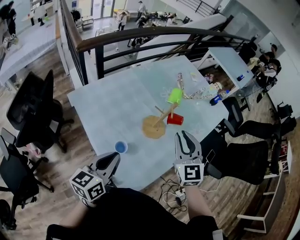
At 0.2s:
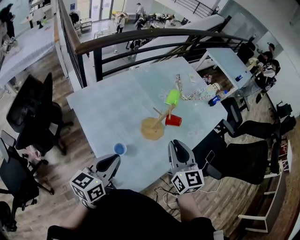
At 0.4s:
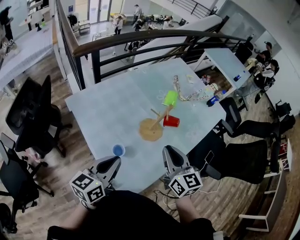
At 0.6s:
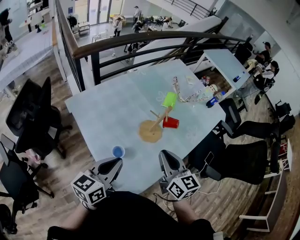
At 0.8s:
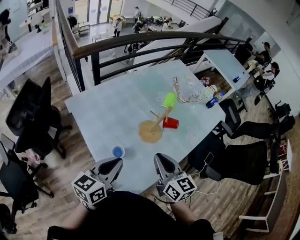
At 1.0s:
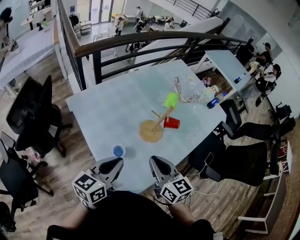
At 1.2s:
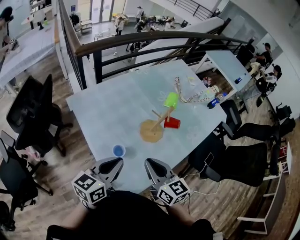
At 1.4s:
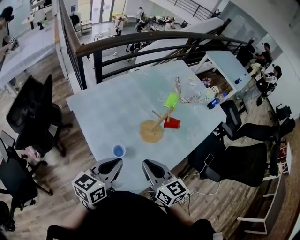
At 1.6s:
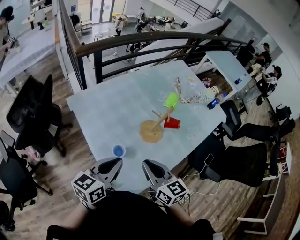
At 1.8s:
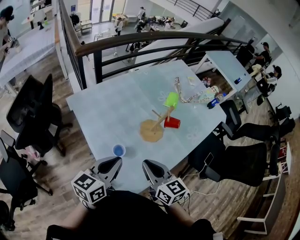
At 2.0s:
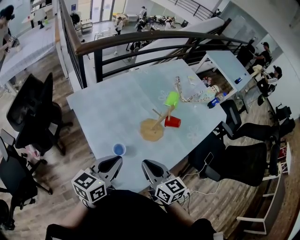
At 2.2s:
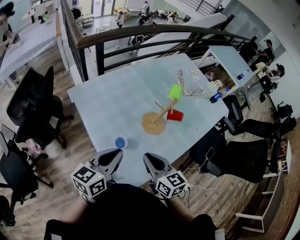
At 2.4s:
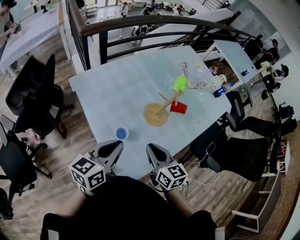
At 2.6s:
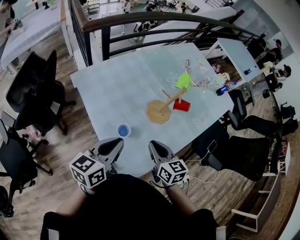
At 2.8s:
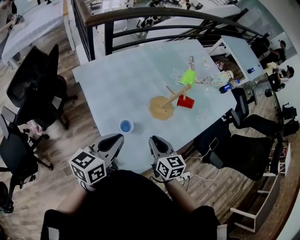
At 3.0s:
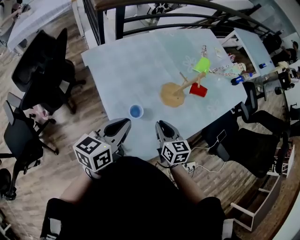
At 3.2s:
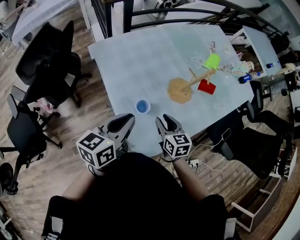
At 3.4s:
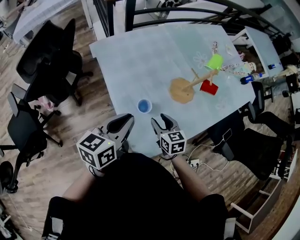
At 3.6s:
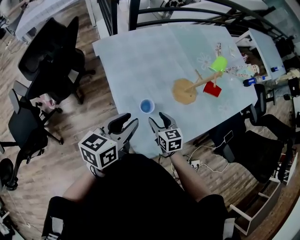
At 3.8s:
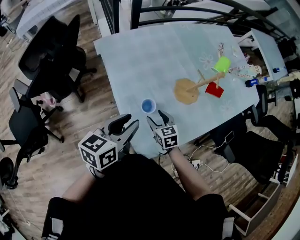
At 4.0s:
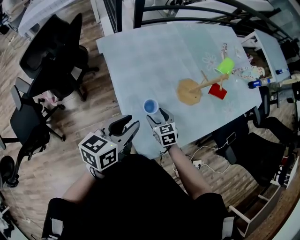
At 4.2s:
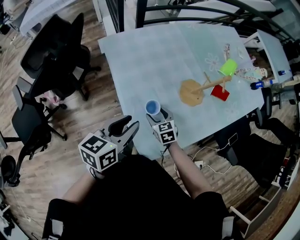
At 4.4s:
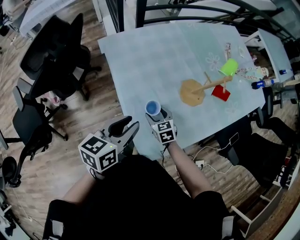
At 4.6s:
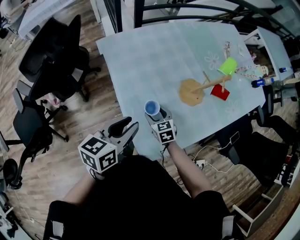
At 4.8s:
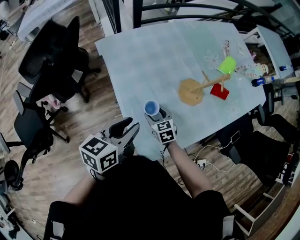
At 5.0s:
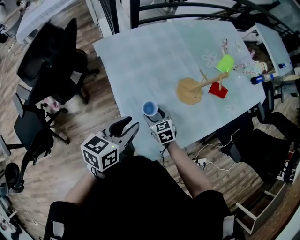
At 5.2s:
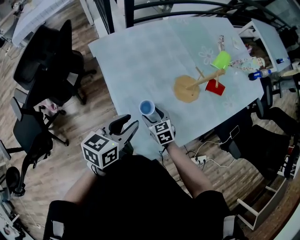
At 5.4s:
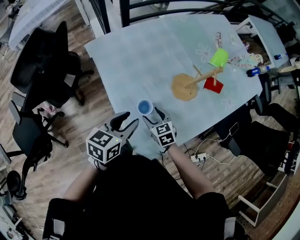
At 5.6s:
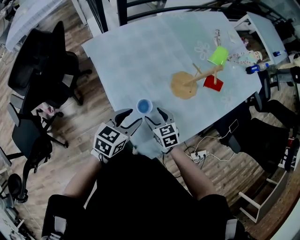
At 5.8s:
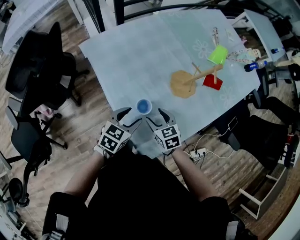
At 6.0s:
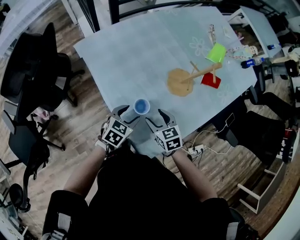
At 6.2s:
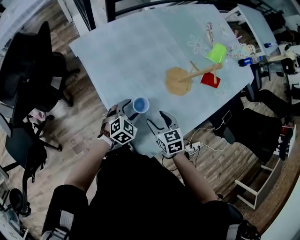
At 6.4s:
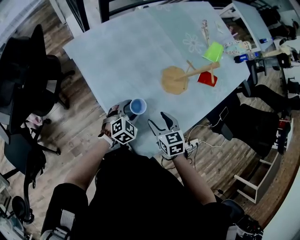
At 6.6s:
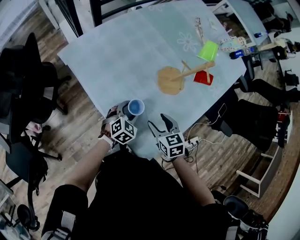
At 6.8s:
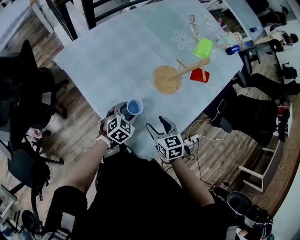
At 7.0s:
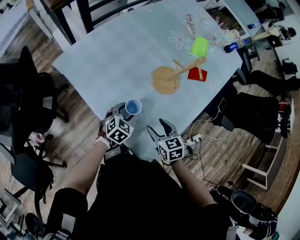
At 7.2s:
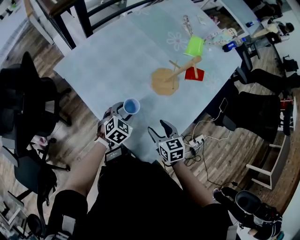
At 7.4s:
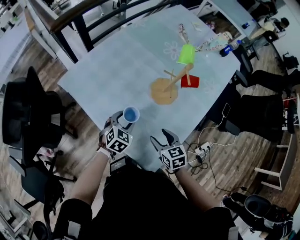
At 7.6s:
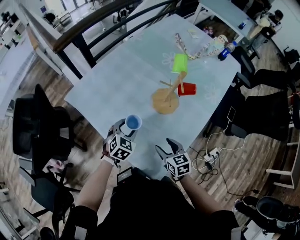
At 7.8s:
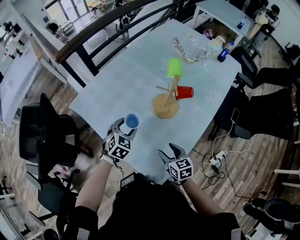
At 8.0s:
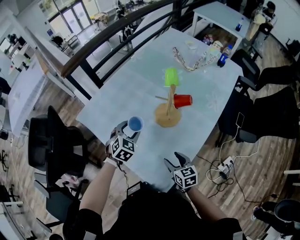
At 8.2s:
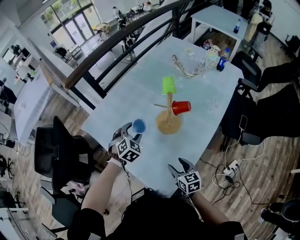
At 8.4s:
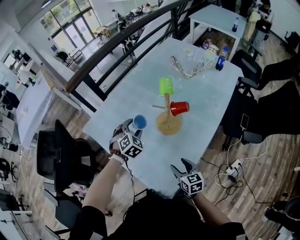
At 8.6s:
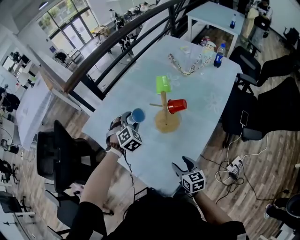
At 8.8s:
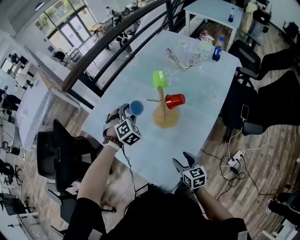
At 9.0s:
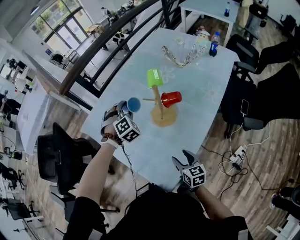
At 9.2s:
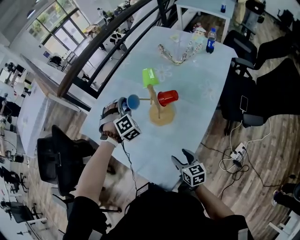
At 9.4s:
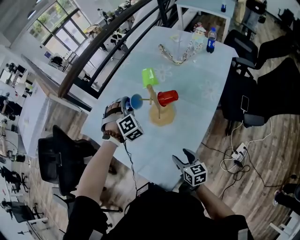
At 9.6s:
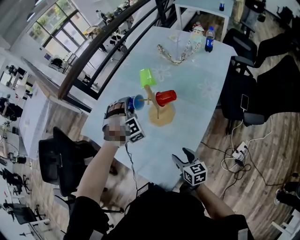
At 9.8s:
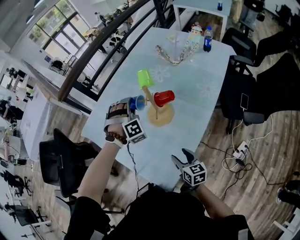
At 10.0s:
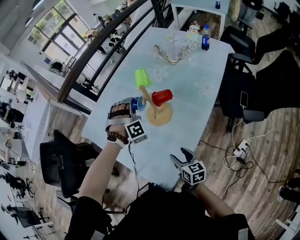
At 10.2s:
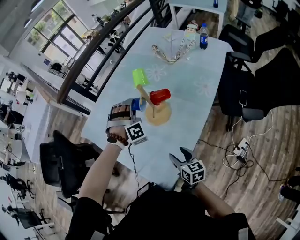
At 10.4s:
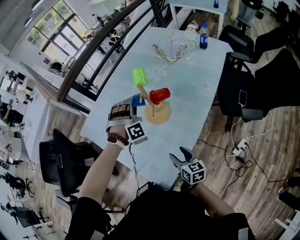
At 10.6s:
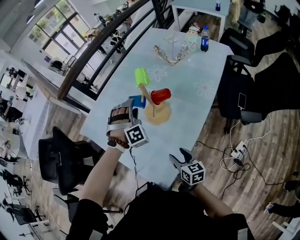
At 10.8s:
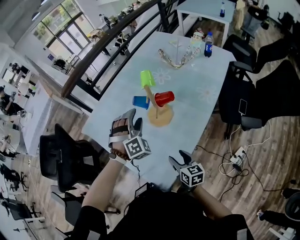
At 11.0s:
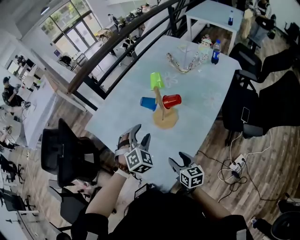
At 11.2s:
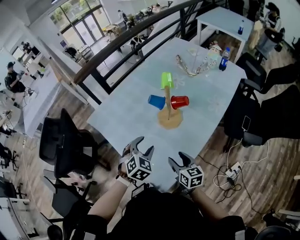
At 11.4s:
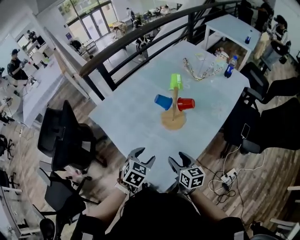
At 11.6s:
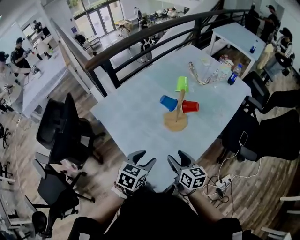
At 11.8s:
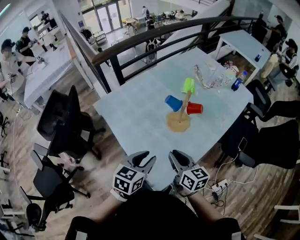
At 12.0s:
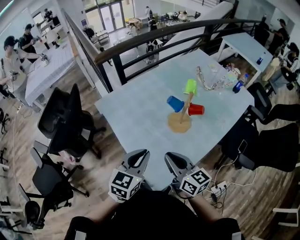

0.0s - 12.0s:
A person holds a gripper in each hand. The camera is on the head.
0.0s - 1.6s: The right gripper moves backward, to the left and downward, about 15 cm, and swivels about 40 degrees.
1.6s - 3.0s: The left gripper changes place by some 5 cm; the right gripper travels downward by about 15 cm.
3.0s - 4.4s: The left gripper ends up roughly 5 cm from where it was, and opens up. Meanwhile the right gripper heads downward and to the left, covering roughly 15 cm, changes its angle by approximately 30 degrees, and opens.
4.4s - 6.0s: The right gripper shifts some 5 cm to the right; the left gripper travels downward by roughly 20 cm, rotates approximately 40 degrees, and opens up.
6.0s - 7.6s: The left gripper is displaced forward by approximately 10 cm, and changes its angle by approximately 30 degrees, while the right gripper moves to the right, some 5 cm, and turns by some 20 degrees.
7.6s - 9.0s: The right gripper travels to the right by about 10 cm; the left gripper goes about 20 cm forward, upward and to the right, and changes its angle by about 50 degrees.
9.0s - 10.4s: The left gripper heads to the right, covering some 10 cm, and swivels roughly 30 degrees.
10.4s - 12.0s: The left gripper shifts approximately 30 cm backward and to the left, rolls counterclockwise, seen from behind, by some 90 degrees, and closes. The right gripper is displaced upward and to the left by some 25 cm, swivels about 30 degrees, and closes its fingers.

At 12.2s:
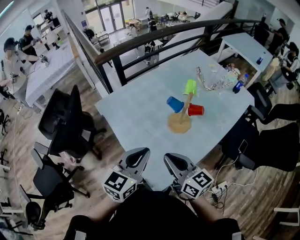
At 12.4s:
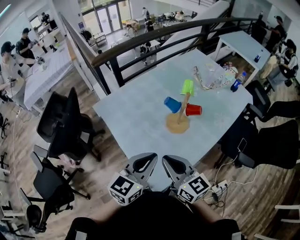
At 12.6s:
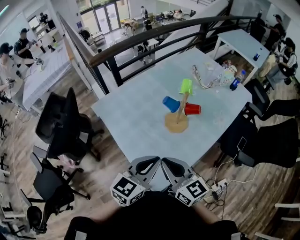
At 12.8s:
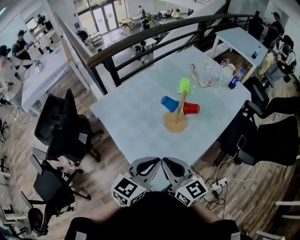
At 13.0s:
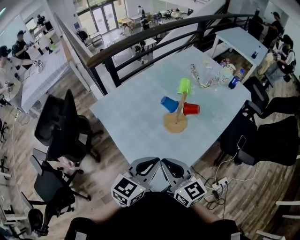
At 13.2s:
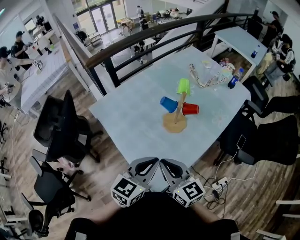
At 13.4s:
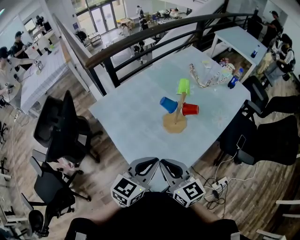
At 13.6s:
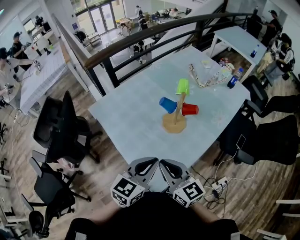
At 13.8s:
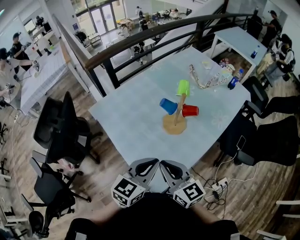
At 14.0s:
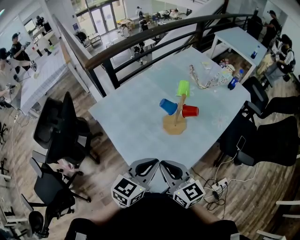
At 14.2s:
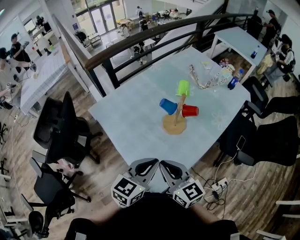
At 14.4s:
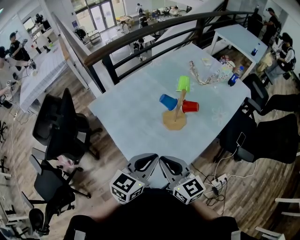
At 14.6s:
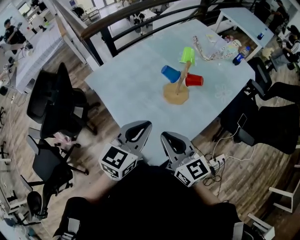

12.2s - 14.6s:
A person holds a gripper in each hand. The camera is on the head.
12.2s - 13.4s: The left gripper travels to the right by about 5 cm.
13.4s - 14.6s: The left gripper shifts roughly 5 cm forward.

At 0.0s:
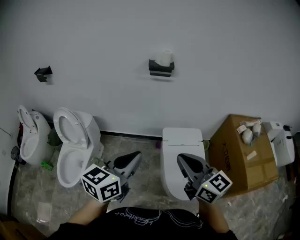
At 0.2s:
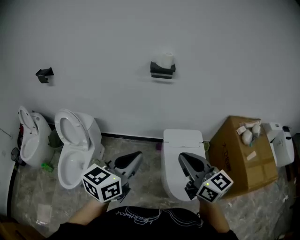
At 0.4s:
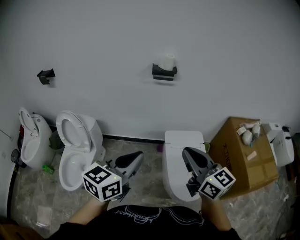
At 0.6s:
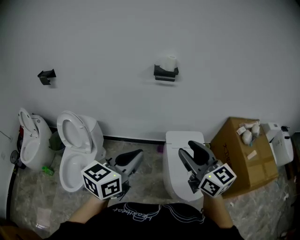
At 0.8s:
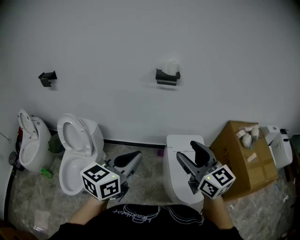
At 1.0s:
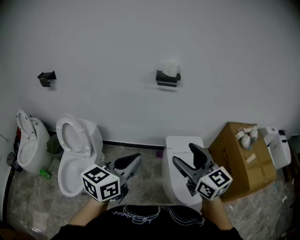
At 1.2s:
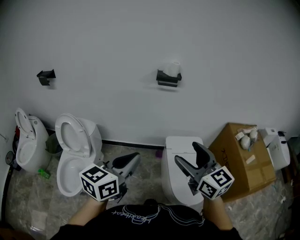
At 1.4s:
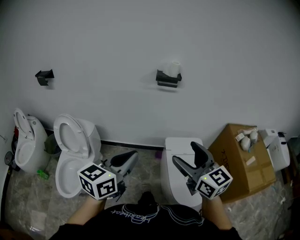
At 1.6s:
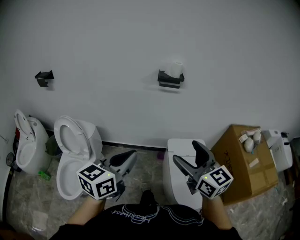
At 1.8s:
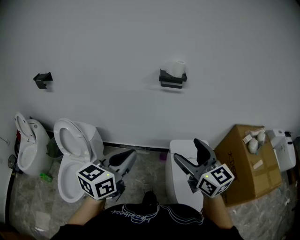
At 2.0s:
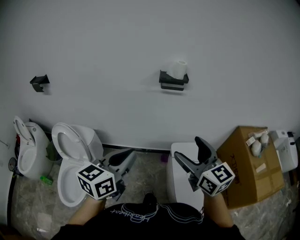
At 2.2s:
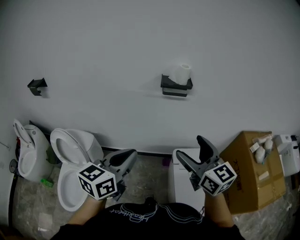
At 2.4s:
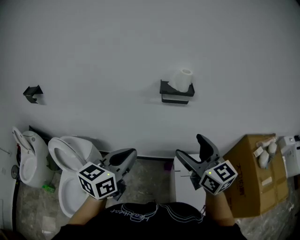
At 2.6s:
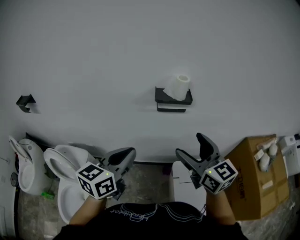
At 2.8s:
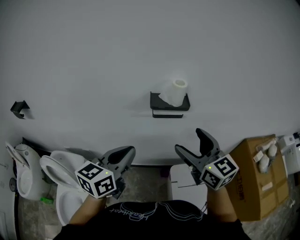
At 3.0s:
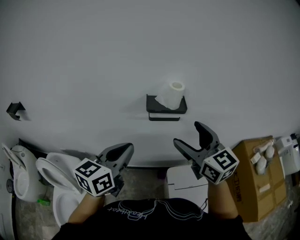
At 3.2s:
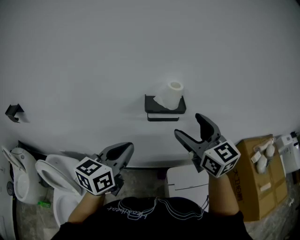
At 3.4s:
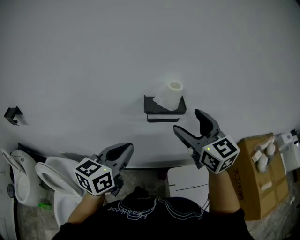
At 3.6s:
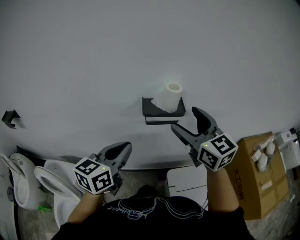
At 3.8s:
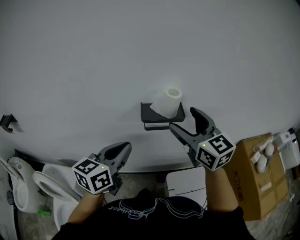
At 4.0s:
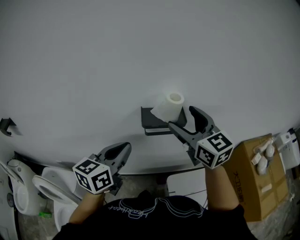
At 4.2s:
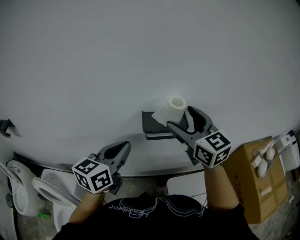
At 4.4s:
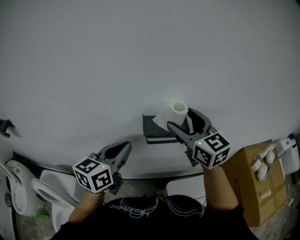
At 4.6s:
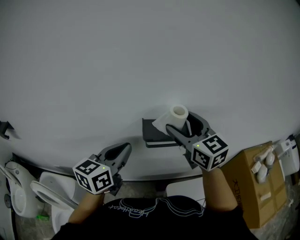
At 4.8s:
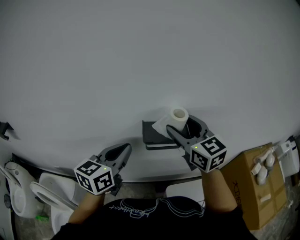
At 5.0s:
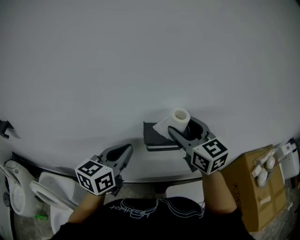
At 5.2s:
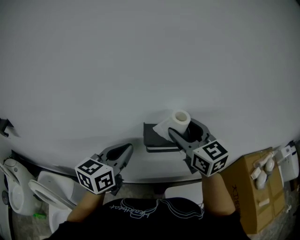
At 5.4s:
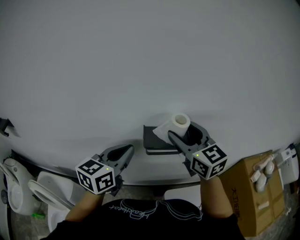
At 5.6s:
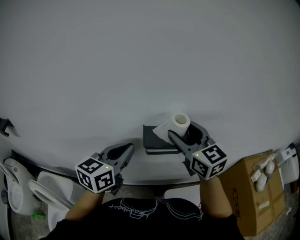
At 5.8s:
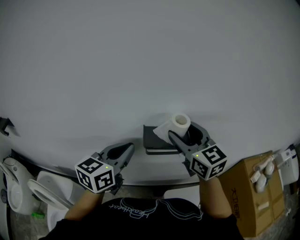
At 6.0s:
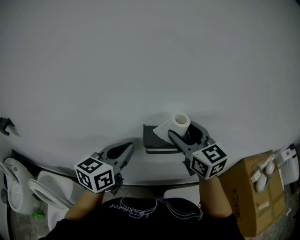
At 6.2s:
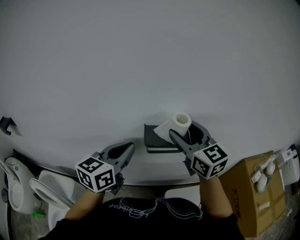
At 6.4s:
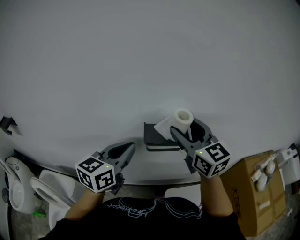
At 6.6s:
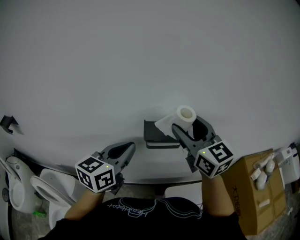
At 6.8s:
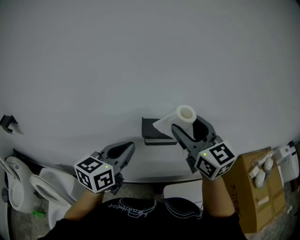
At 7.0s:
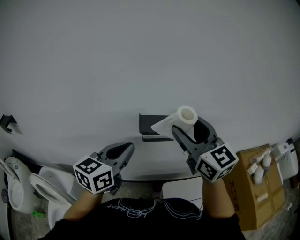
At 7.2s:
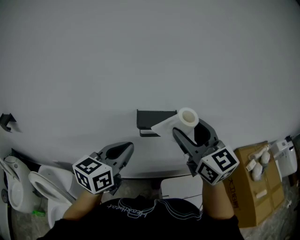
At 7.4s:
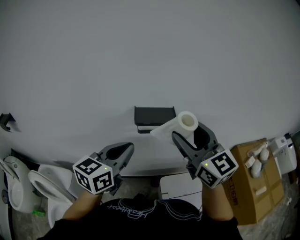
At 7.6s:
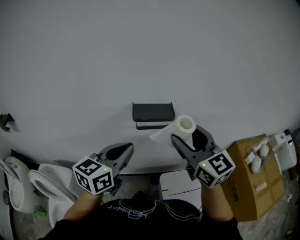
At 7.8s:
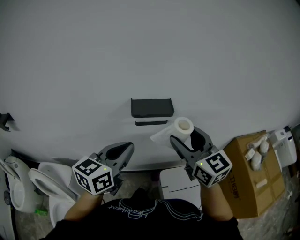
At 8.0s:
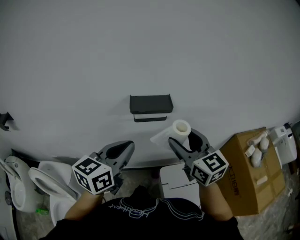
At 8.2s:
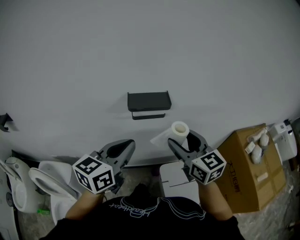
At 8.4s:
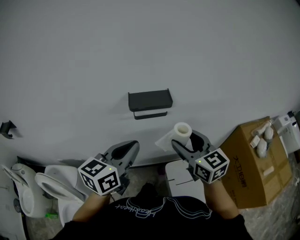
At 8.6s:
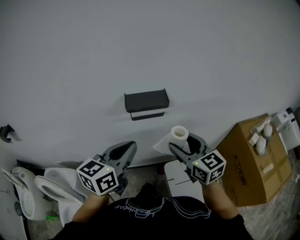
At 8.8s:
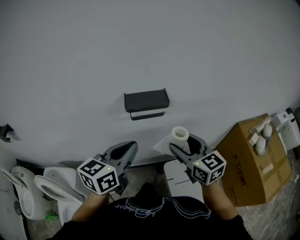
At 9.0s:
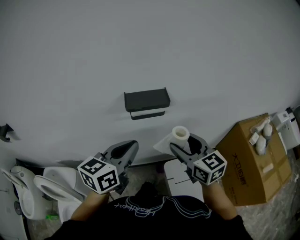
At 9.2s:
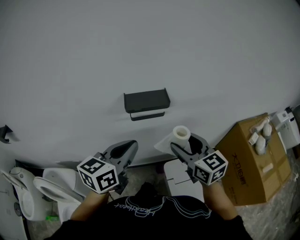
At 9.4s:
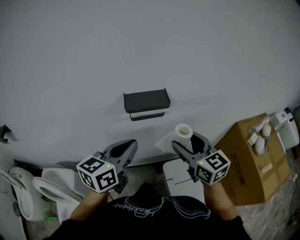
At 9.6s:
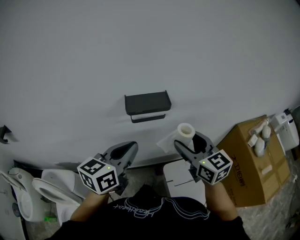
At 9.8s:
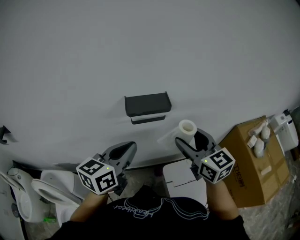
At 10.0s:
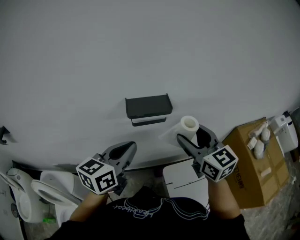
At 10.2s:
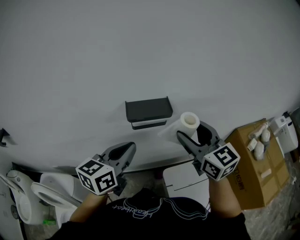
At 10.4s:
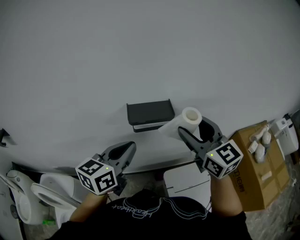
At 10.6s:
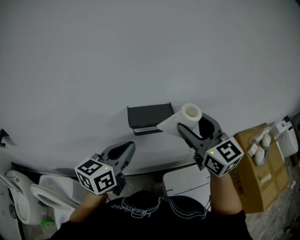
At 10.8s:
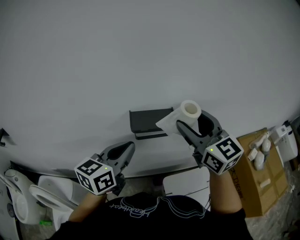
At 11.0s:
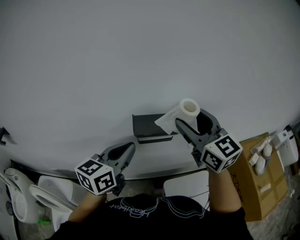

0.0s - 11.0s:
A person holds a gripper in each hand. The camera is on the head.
0.0s - 1.6s: The left gripper moves to the left, approximately 10 cm. The right gripper travels to the left and forward by some 10 cm, and opens its fingers.
1.6s - 3.2s: The two grippers go about 40 cm forward.
3.2s - 4.8s: Both grippers travel together forward, approximately 15 cm.
4.8s - 6.2s: The grippers stay close to where they were, moving slightly.
6.2s - 7.8s: Both grippers move backward and to the right, some 15 cm.
7.8s - 9.4s: The right gripper moves downward, some 10 cm.
9.4s - 11.0s: The right gripper shifts some 15 cm upward and forward. The left gripper travels forward by roughly 5 cm.
